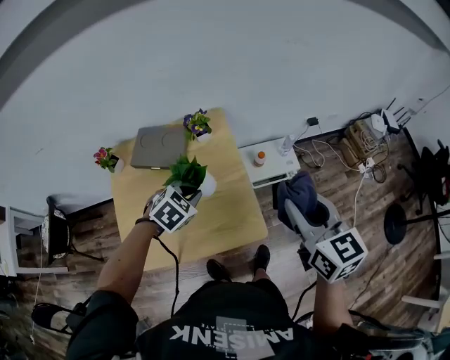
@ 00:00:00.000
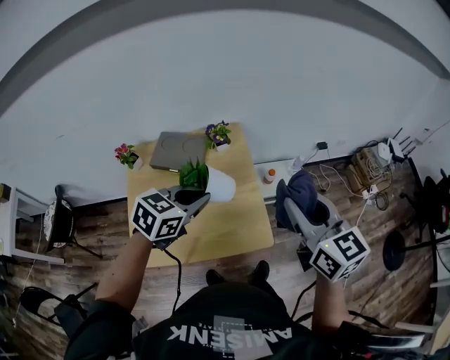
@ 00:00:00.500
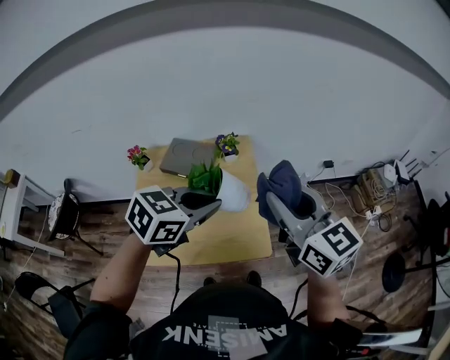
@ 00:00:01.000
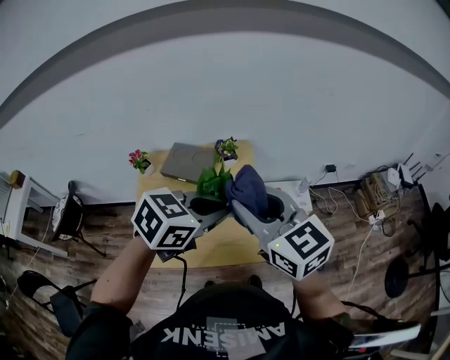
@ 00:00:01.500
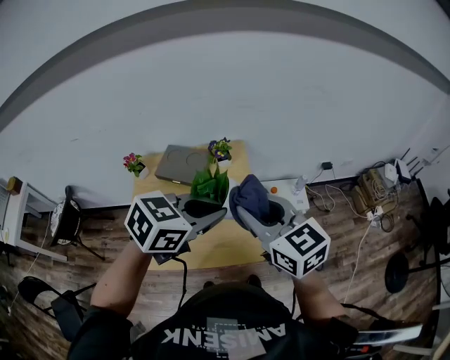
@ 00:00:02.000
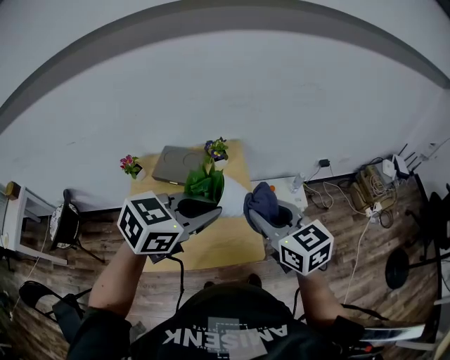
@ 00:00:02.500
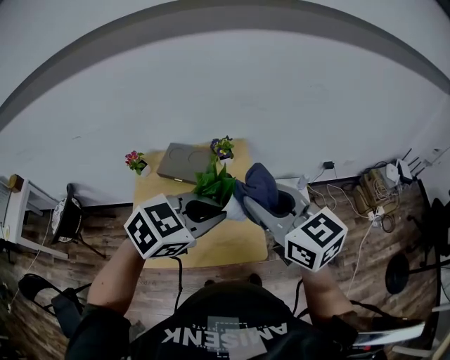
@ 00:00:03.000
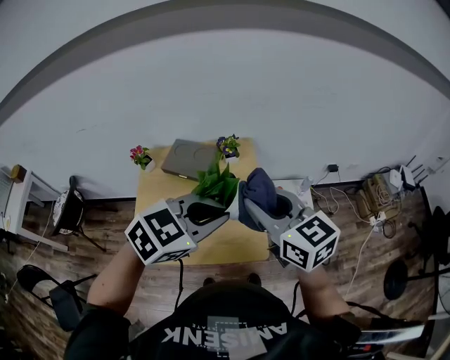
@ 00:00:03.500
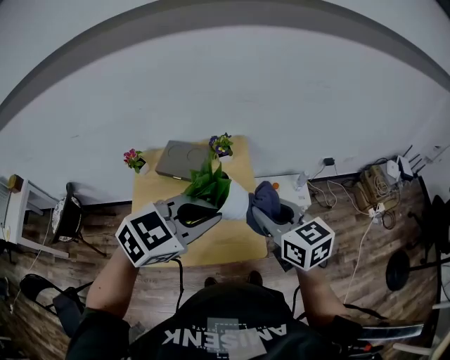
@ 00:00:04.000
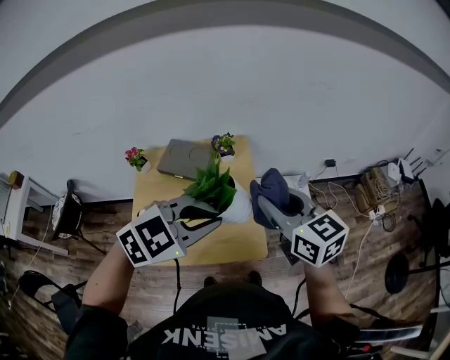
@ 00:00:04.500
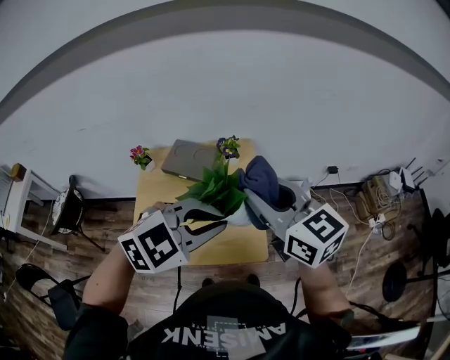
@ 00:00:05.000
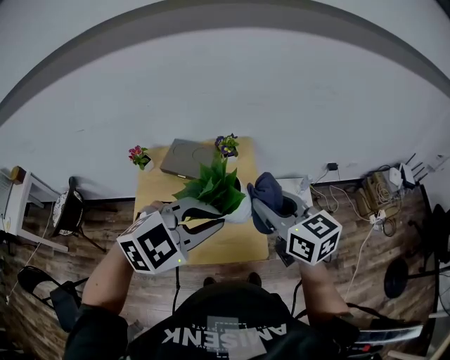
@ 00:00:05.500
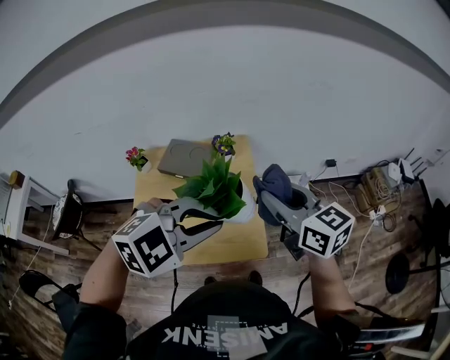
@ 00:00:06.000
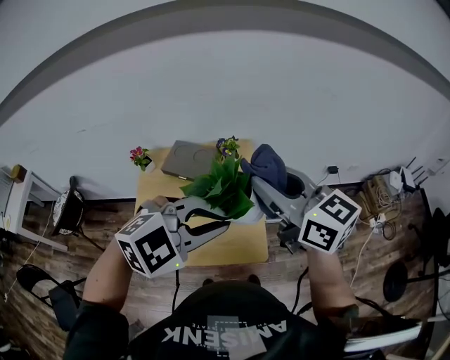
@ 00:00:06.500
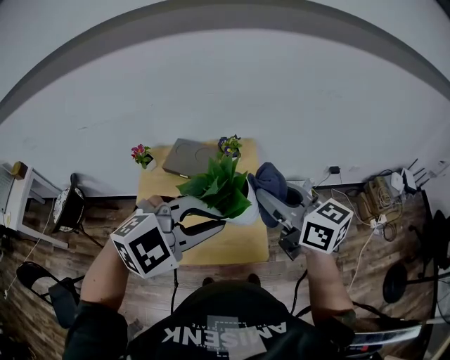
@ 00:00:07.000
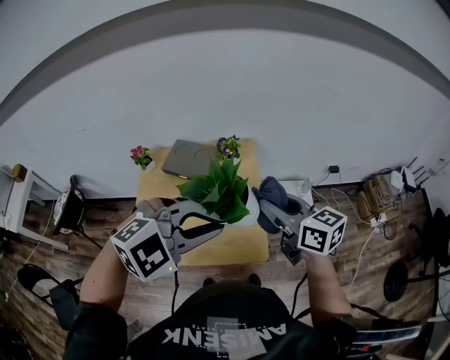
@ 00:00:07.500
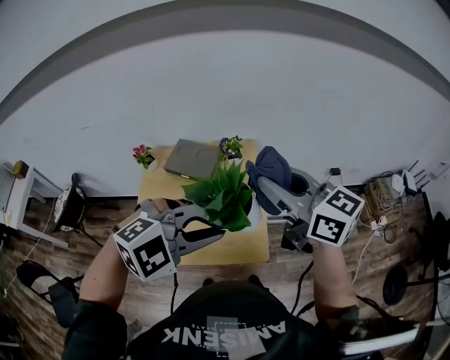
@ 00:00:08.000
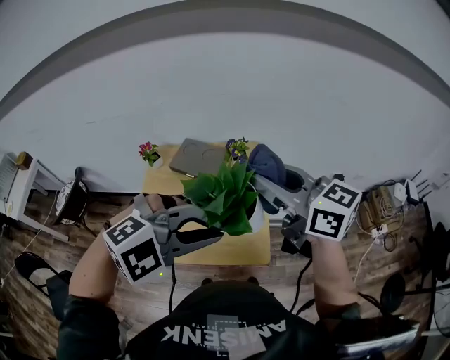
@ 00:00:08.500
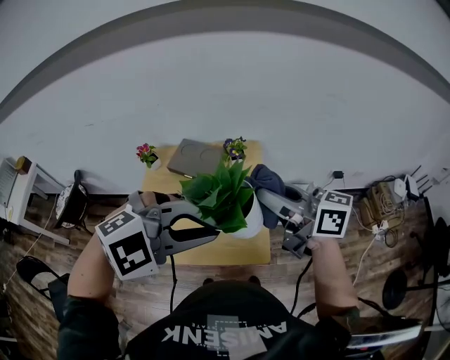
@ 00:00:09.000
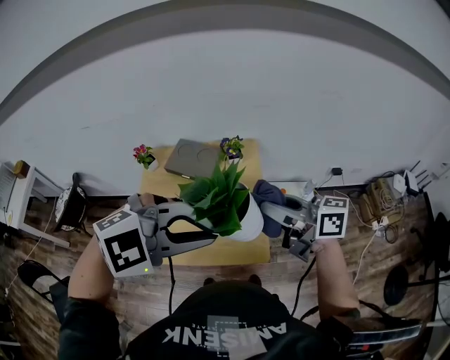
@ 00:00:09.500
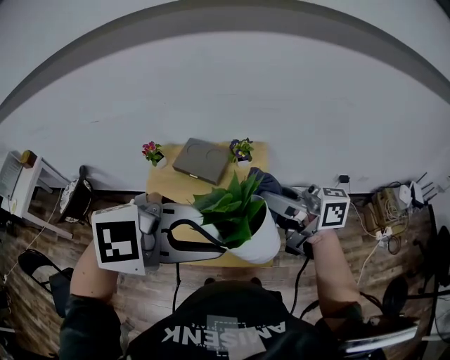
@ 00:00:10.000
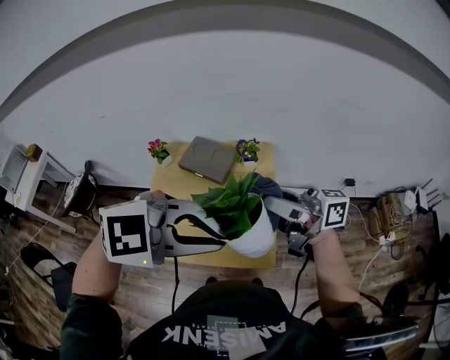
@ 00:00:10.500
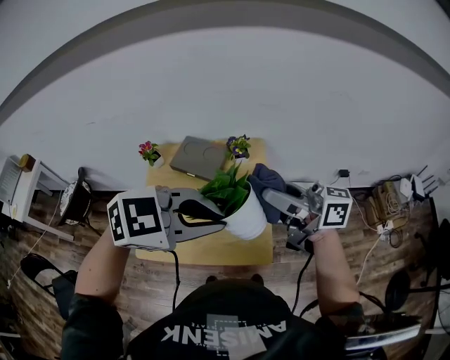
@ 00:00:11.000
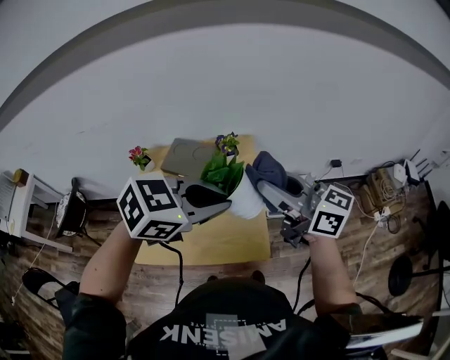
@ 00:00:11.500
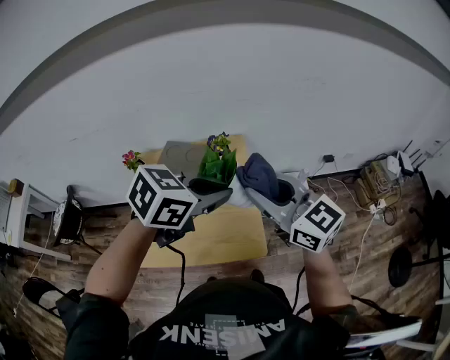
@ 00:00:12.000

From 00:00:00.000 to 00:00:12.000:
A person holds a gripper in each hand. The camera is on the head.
From 00:00:00.000 to 00:00:02.000: The left gripper goes approximately 20 cm upward, and swivels approximately 30 degrees. The right gripper shifts some 15 cm to the left and upward, and rotates about 30 degrees.
From 00:00:02.000 to 00:00:04.000: The right gripper swings up and down, some 10 cm each way, with 2 reversals.
From 00:00:04.000 to 00:00:06.000: The right gripper heads upward, covering some 5 cm, while the left gripper turns by approximately 30 degrees.
From 00:00:06.000 to 00:00:08.000: The right gripper swings up and down, about 10 cm each way, with 2 reversals.
From 00:00:08.000 to 00:00:10.000: The right gripper rotates approximately 40 degrees. The left gripper is displaced upward by approximately 5 cm.
From 00:00:10.000 to 00:00:12.000: The left gripper changes place by about 15 cm, and rolls counterclockwise, seen from behind, by about 40 degrees. The right gripper turns by some 50 degrees.

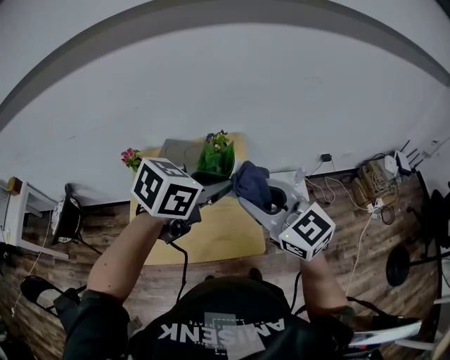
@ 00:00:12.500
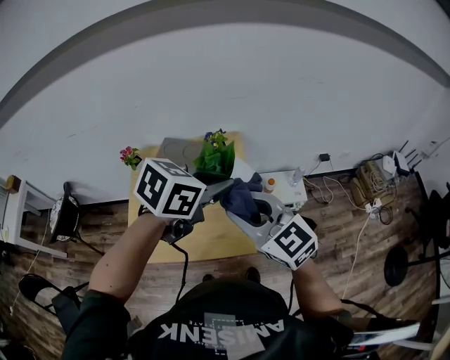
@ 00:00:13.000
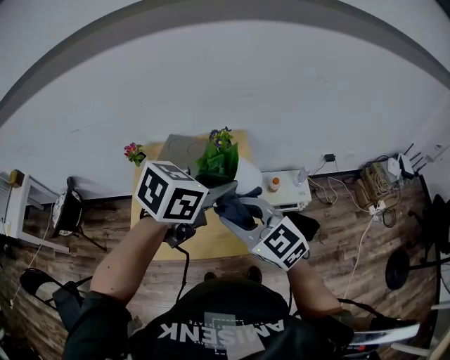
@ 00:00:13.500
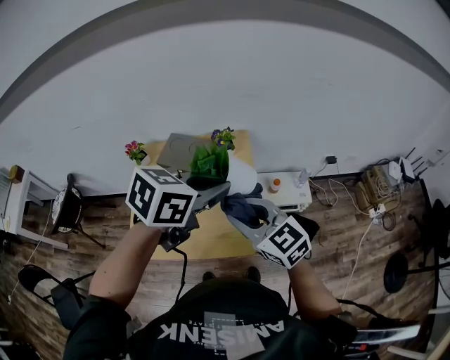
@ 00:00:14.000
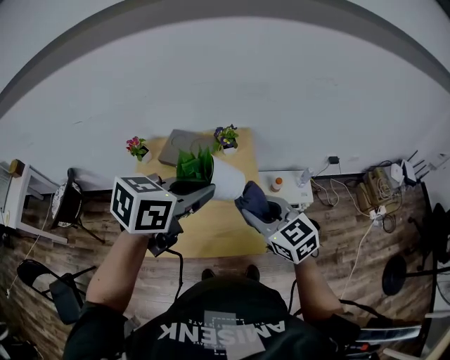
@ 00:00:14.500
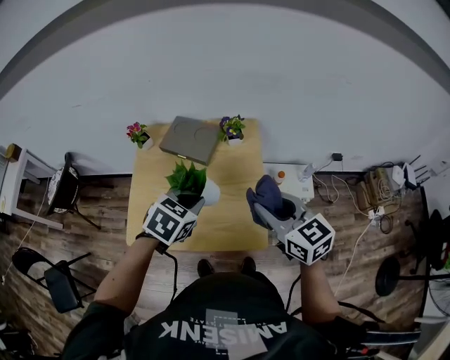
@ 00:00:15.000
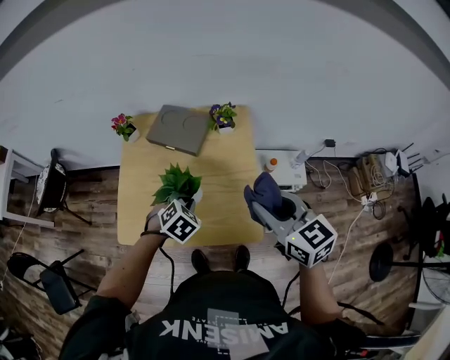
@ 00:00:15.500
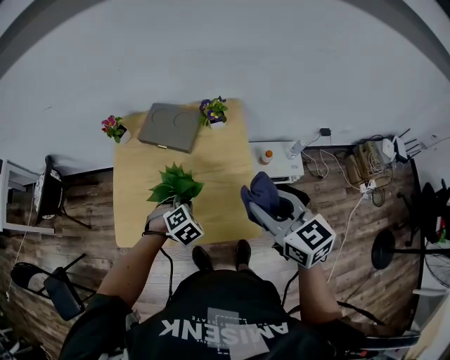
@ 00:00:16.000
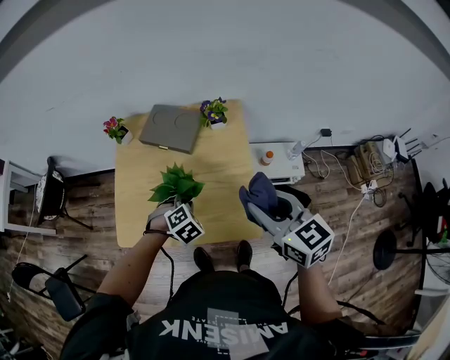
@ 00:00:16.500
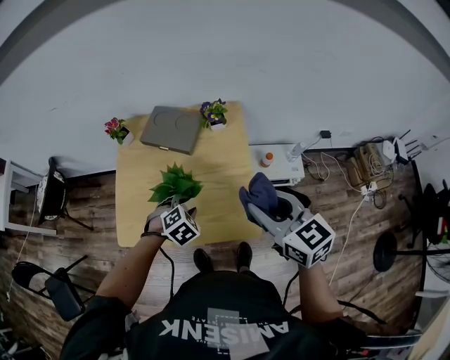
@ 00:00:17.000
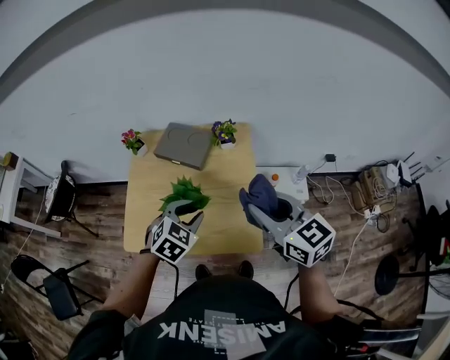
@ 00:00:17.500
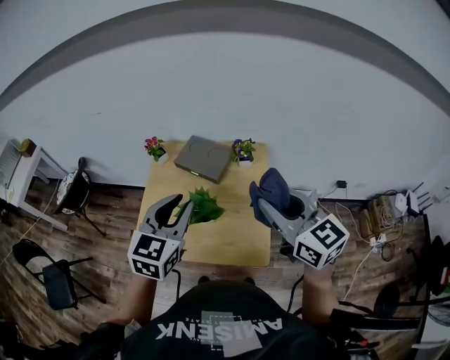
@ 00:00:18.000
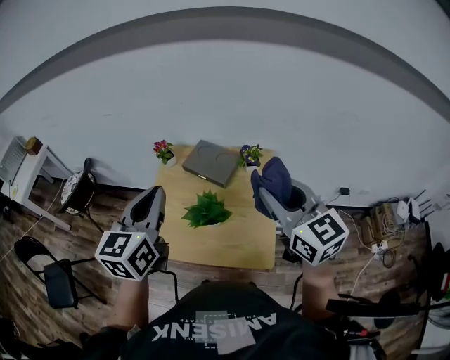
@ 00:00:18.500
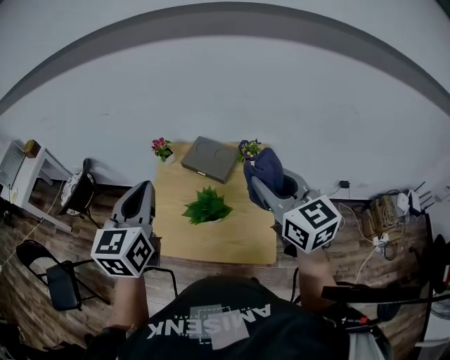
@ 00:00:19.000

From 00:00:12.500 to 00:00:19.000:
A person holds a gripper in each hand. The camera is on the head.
From 00:00:12.500 to 00:00:14.500: The left gripper travels to the left by approximately 5 cm. The right gripper goes about 10 cm downward.
From 00:00:14.500 to 00:00:17.000: The left gripper moves downward, roughly 30 cm, tips its fingers downward by approximately 30 degrees, and opens.
From 00:00:17.000 to 00:00:19.000: The left gripper travels upward by some 40 cm, tips its fingers upward by about 60 degrees, and closes up, while the right gripper shifts about 15 cm upward and forward.

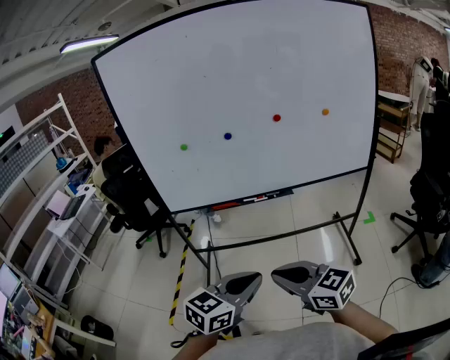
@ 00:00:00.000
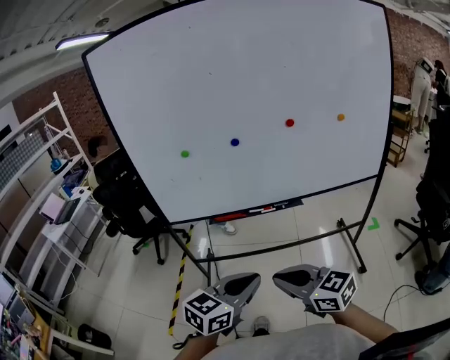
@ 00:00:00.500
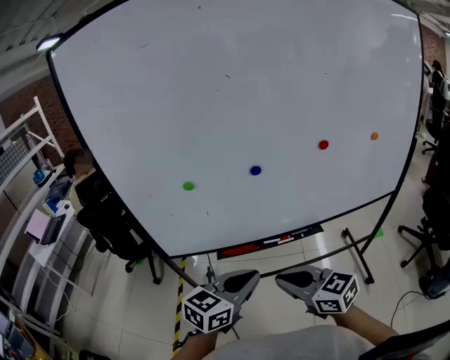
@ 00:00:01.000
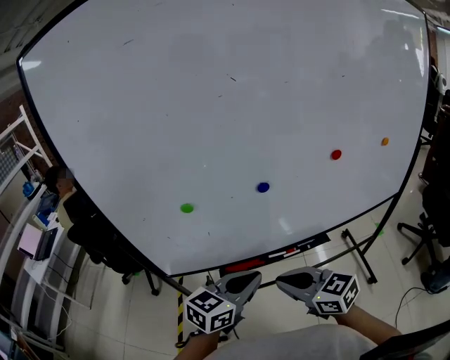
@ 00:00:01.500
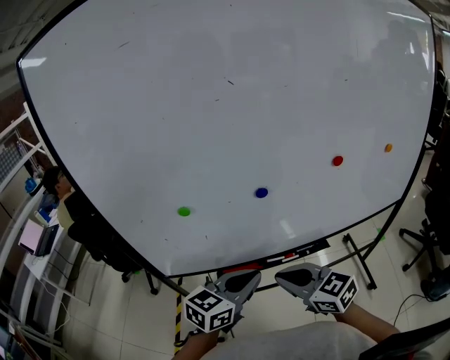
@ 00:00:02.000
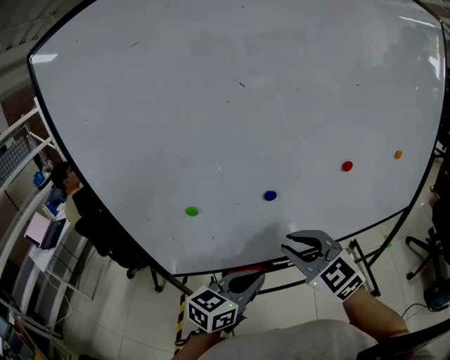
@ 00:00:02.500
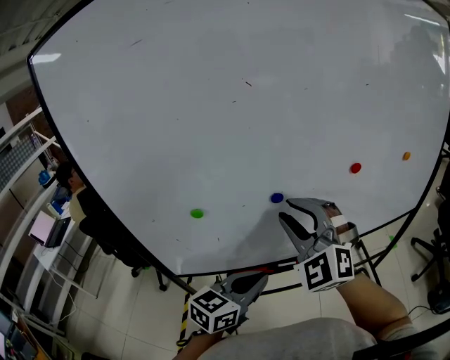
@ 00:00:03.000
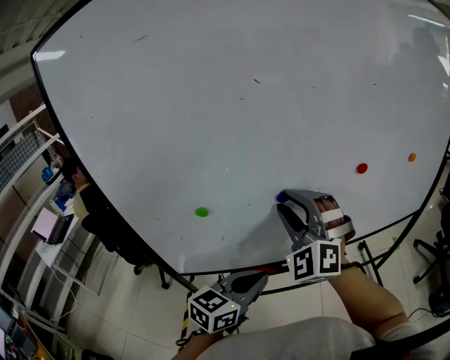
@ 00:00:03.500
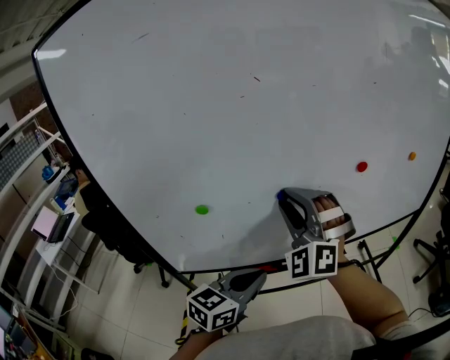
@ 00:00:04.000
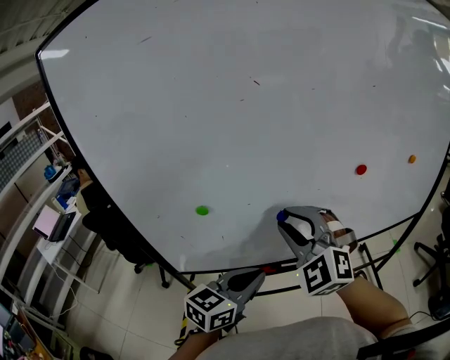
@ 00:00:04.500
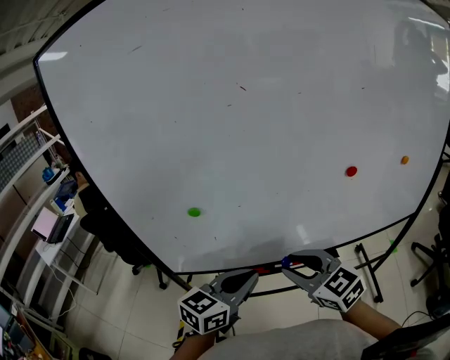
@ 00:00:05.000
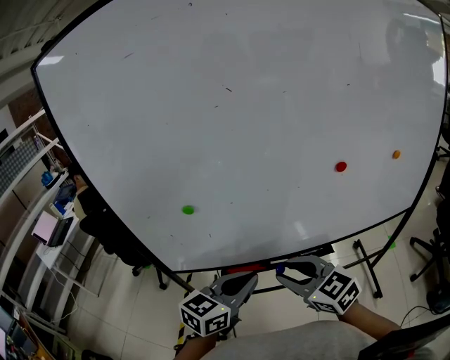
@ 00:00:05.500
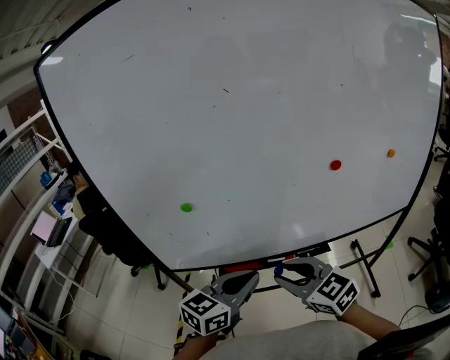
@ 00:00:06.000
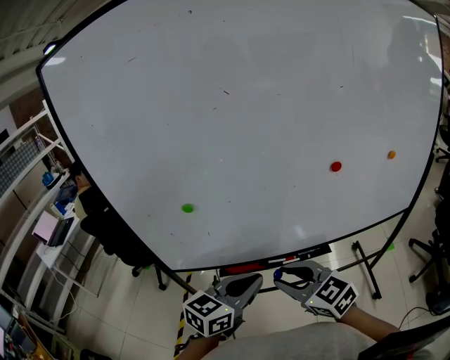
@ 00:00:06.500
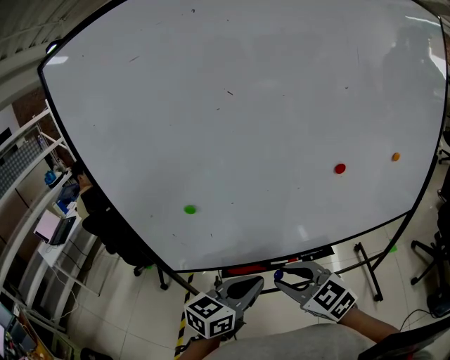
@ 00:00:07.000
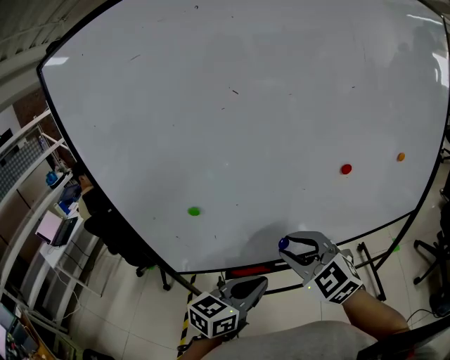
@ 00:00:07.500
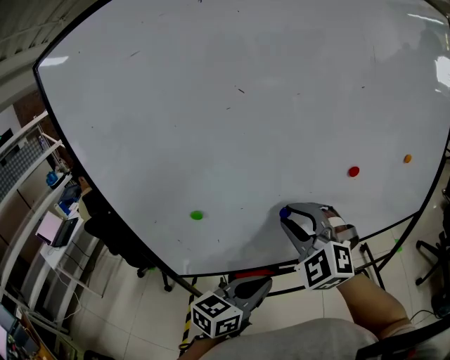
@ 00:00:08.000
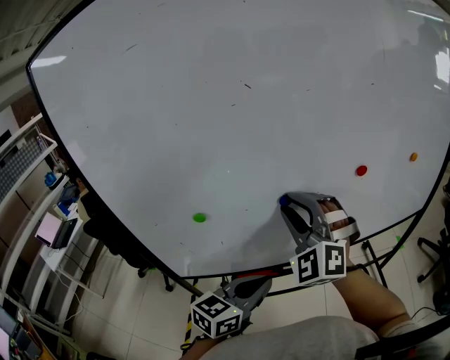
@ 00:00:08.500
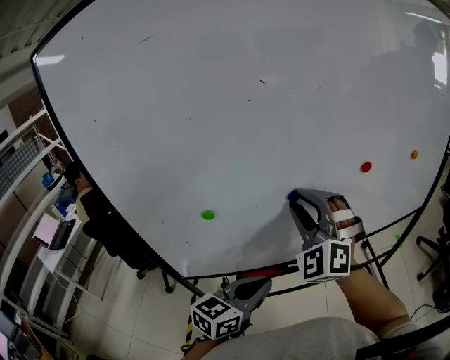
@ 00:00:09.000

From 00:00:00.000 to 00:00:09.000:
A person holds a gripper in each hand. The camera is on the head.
From 00:00:00.000 to 00:00:02.000: The grippers both shift forward by roughly 40 cm.
From 00:00:02.000 to 00:00:04.500: The right gripper goes roughly 15 cm upward and forward, twists some 50 degrees counterclockwise, seen from behind, and opens up.
From 00:00:04.500 to 00:00:07.000: The right gripper heads downward and backward, covering roughly 15 cm, and changes its angle by some 40 degrees, while the left gripper moves some 5 cm.
From 00:00:07.000 to 00:00:09.000: The right gripper shifts about 20 cm forward and upward, and changes its angle by some 60 degrees, while the left gripper shifts by some 5 cm.
